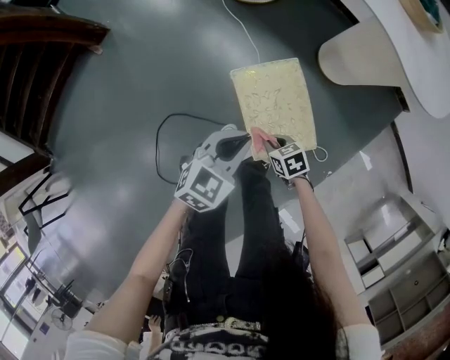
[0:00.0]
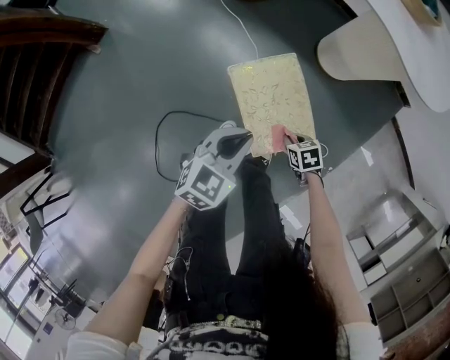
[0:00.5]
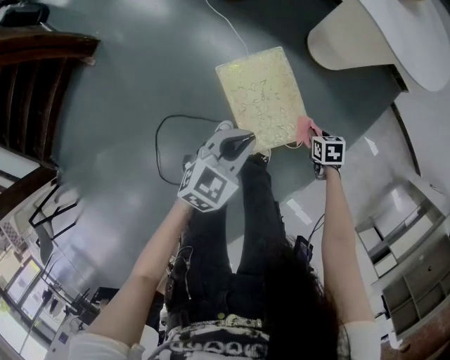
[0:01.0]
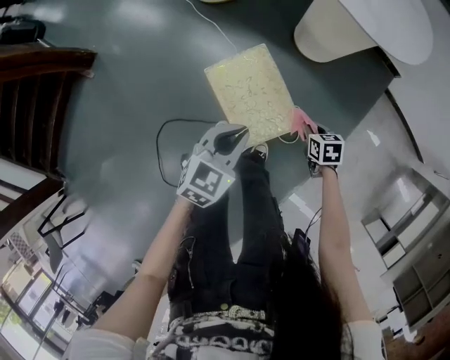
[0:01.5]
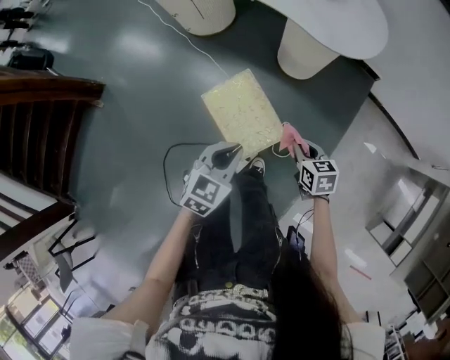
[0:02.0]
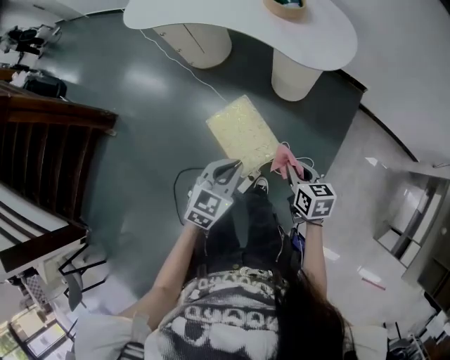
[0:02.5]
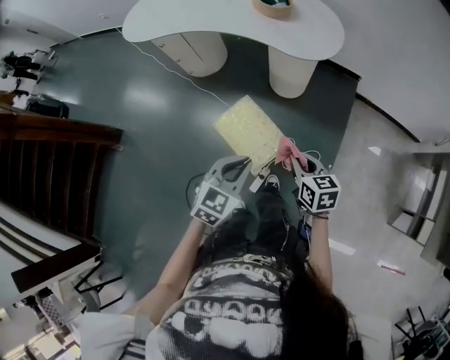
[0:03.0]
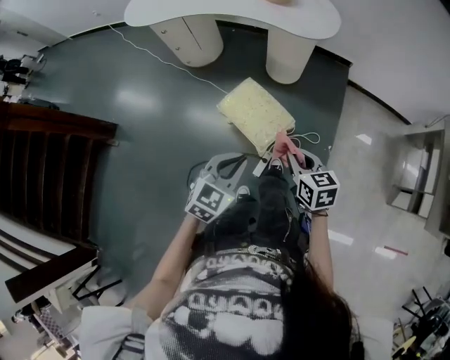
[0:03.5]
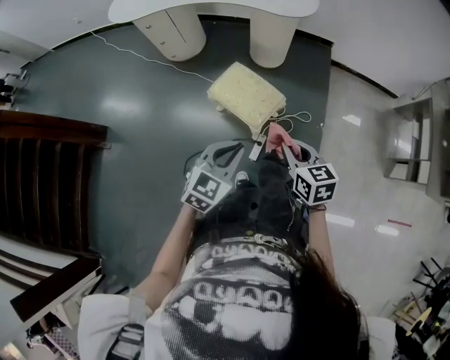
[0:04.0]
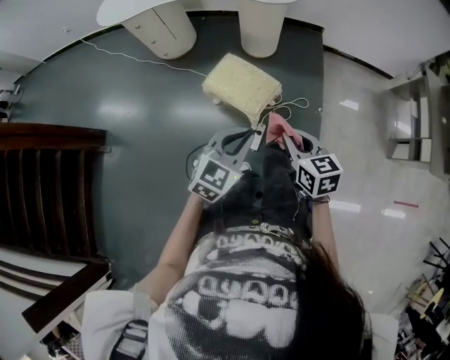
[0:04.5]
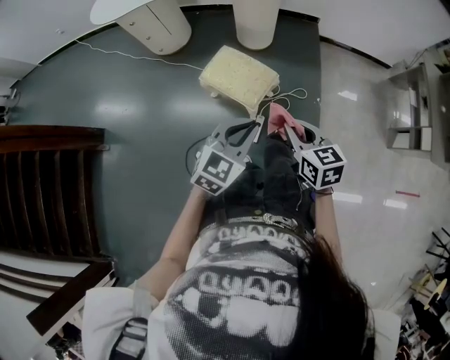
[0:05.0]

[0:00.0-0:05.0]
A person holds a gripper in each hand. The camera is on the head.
0:00.0 to 0:02.5: The right gripper goes some 35 cm upward, and rotates approximately 50 degrees. The left gripper heads upward, covering some 20 cm.
0:02.5 to 0:05.0: The grippers both shift backward by some 30 cm. The left gripper turns by about 30 degrees.

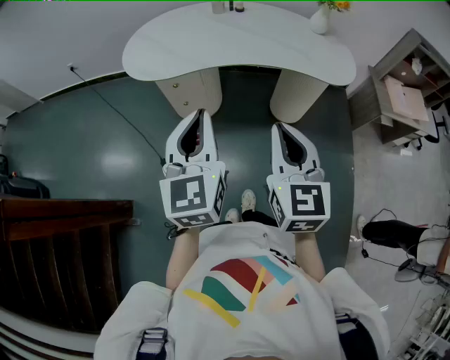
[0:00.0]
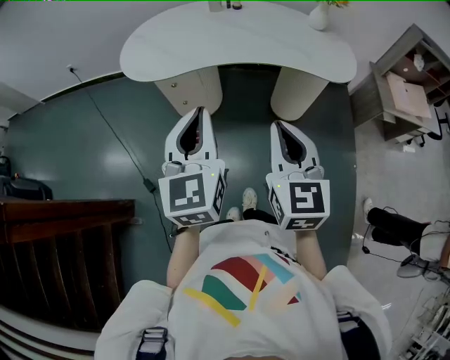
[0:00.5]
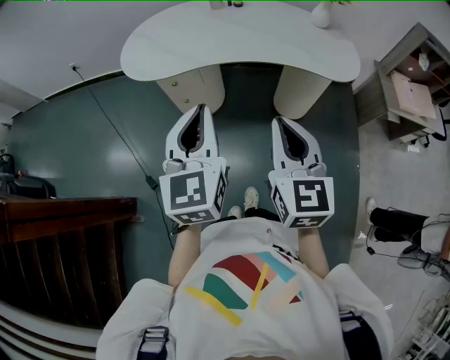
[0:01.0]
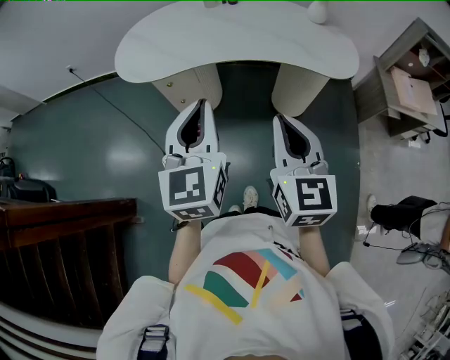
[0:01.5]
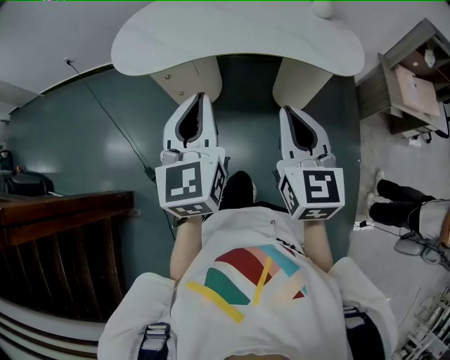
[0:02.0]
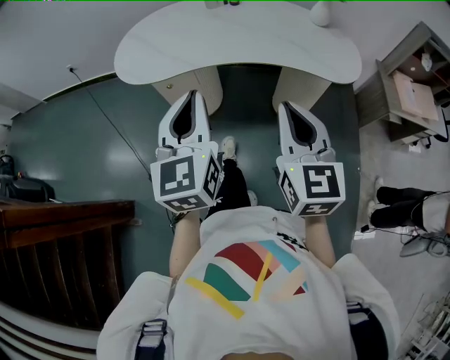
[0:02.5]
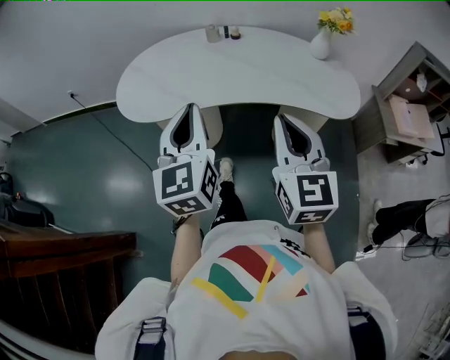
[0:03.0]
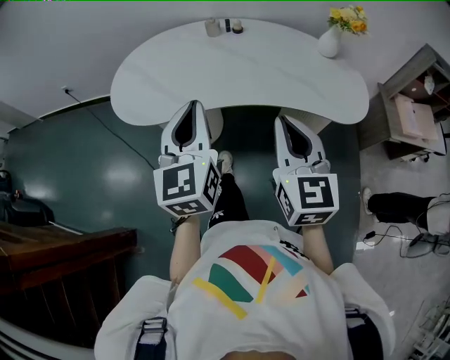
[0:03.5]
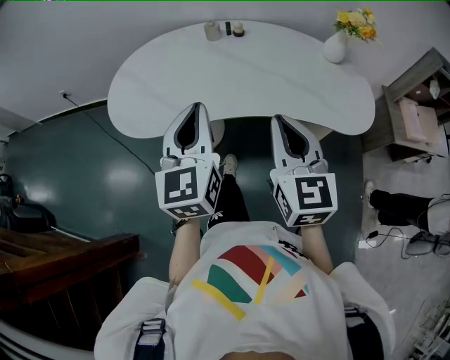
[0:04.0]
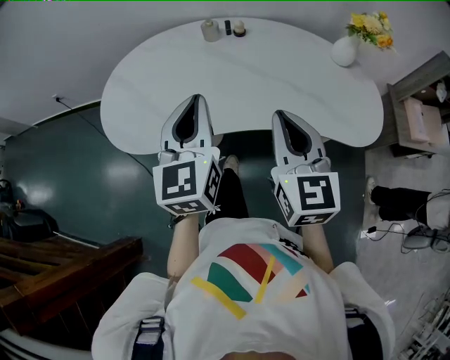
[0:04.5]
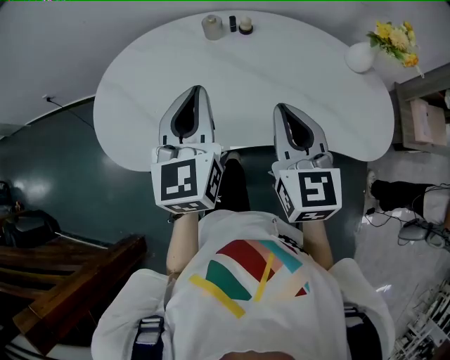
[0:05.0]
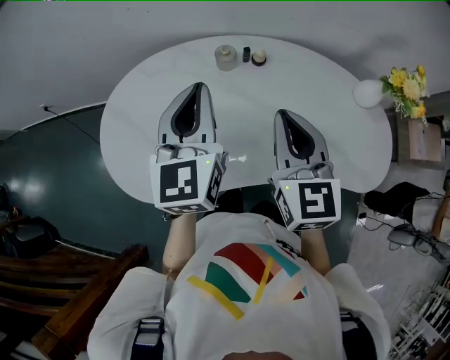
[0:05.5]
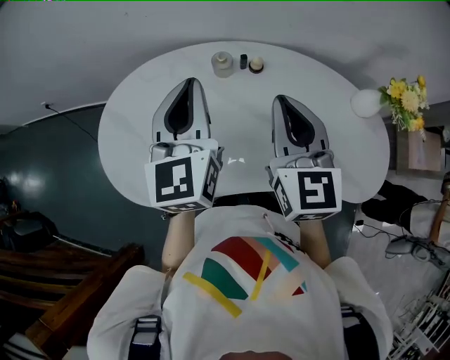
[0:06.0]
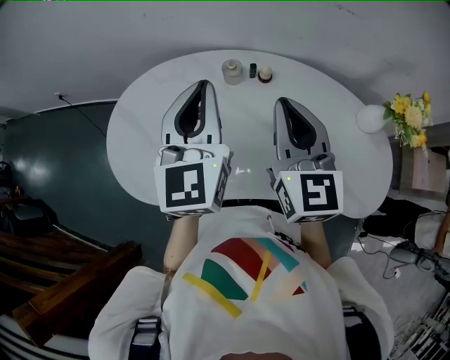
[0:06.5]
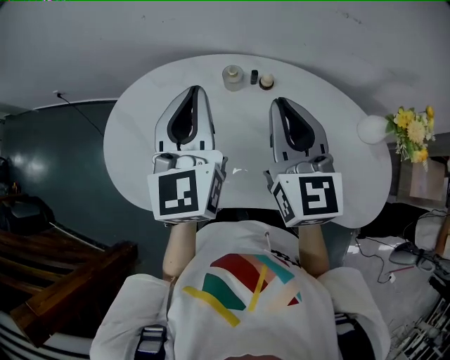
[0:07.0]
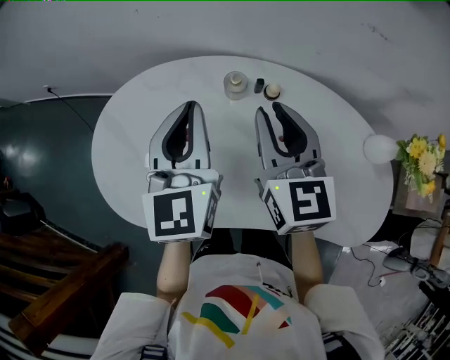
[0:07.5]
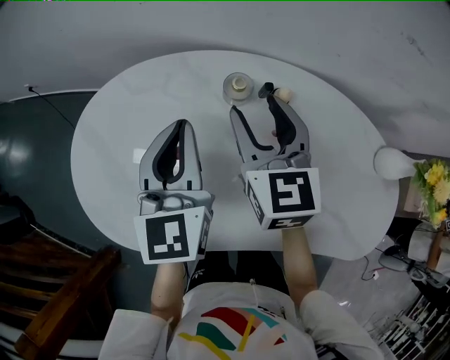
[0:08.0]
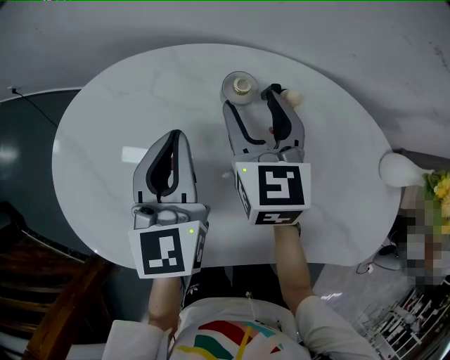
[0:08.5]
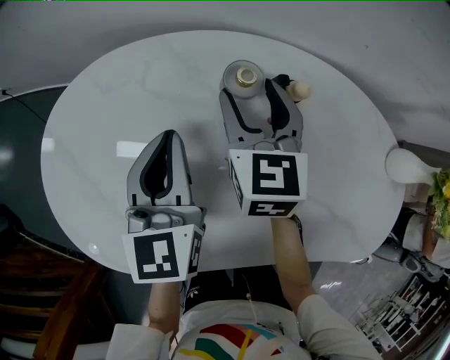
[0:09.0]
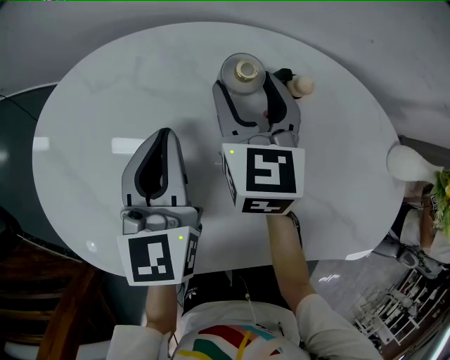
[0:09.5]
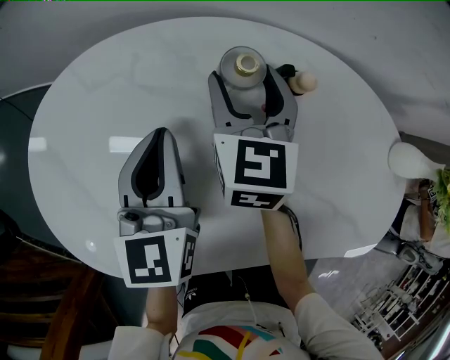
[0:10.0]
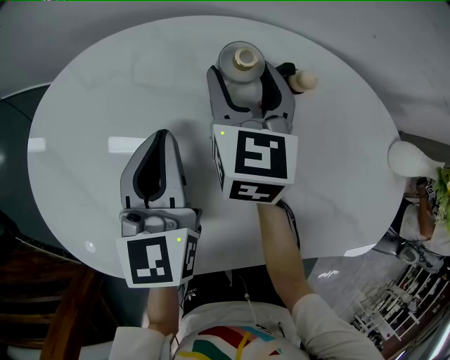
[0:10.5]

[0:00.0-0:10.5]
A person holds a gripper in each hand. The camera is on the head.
0:00.0 to 0:02.0: The right gripper travels to the right and forward by about 10 cm, while the left gripper heads forward and to the right, covering about 10 cm.
0:02.0 to 0:04.0: The two grippers go approximately 20 cm forward.
0:04.0 to 0:06.5: The two grippers go about 30 cm forward.
0:06.5 to 0:08.5: Both grippers move downward and forward, some 25 cm. The right gripper opens.
0:08.5 to 0:10.5: Both grippers travel together downward, approximately 5 cm.

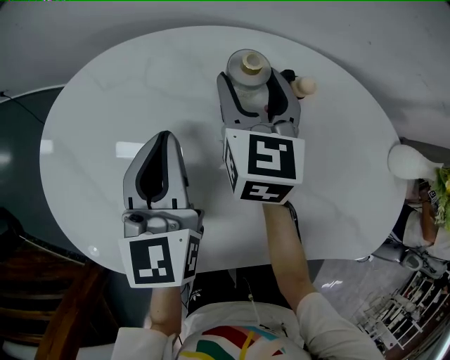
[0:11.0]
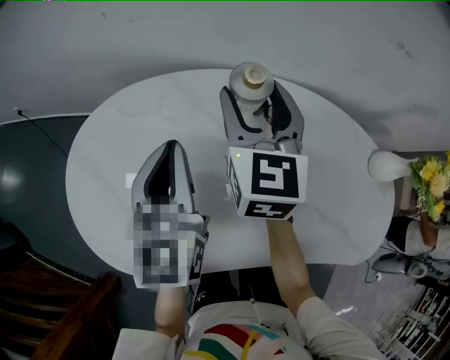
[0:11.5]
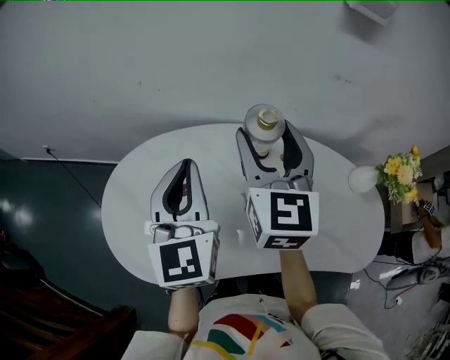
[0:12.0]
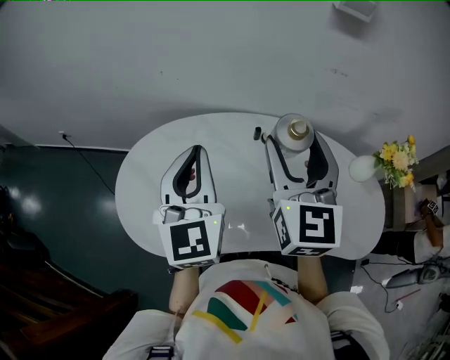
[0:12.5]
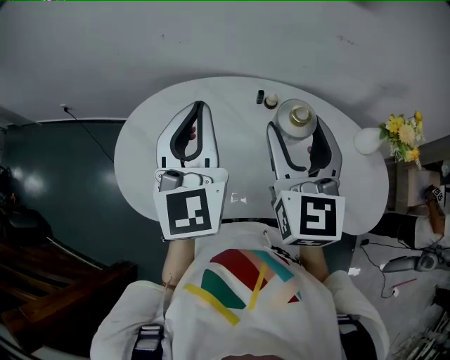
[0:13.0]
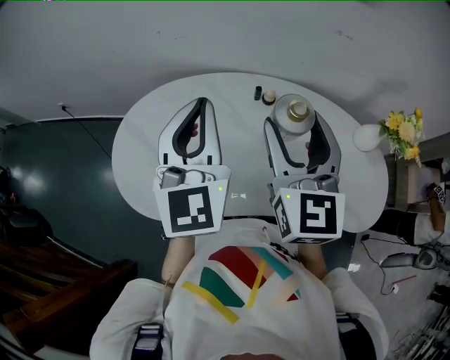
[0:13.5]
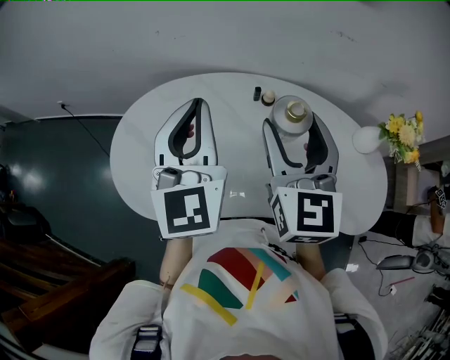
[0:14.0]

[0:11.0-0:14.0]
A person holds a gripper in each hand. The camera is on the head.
0:11.0 to 0:12.5: The right gripper goes some 35 cm upward and backward, and changes its angle by some 20 degrees. Meanwhile the left gripper moves upward, some 25 cm, and rotates about 20 degrees.
0:12.5 to 0:14.0: The right gripper changes place by roughly 5 cm.

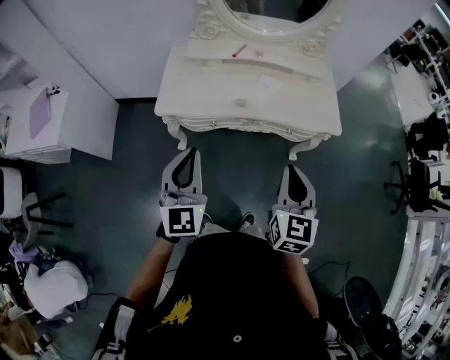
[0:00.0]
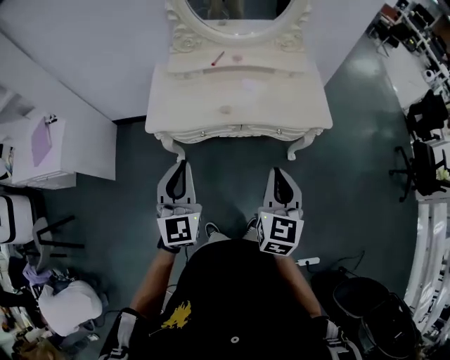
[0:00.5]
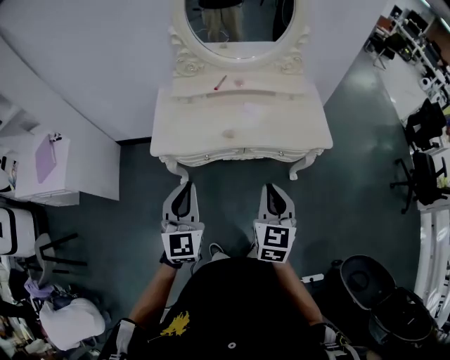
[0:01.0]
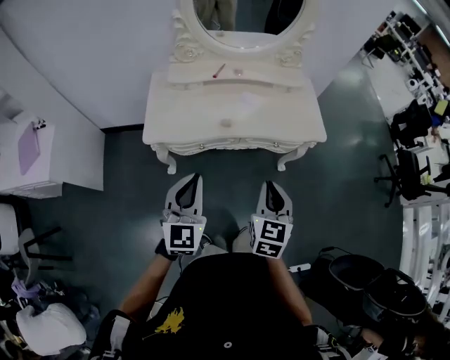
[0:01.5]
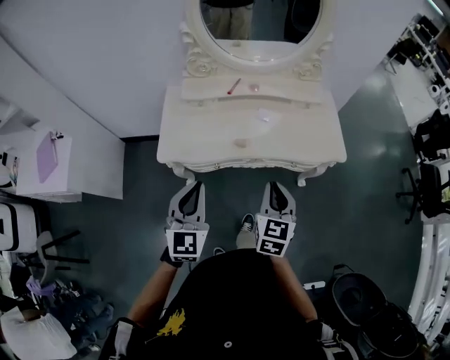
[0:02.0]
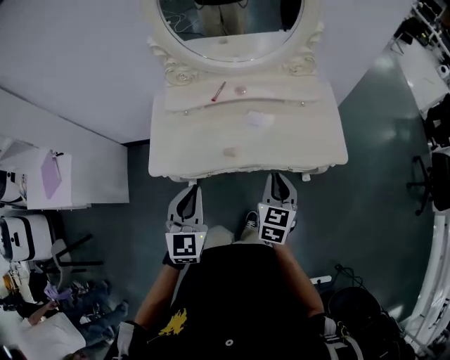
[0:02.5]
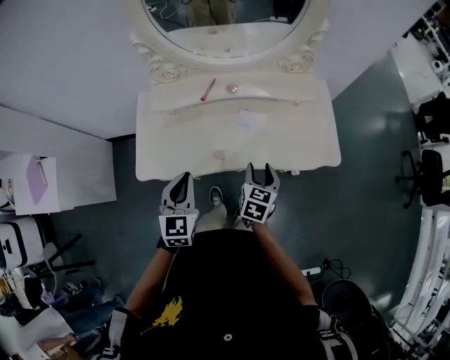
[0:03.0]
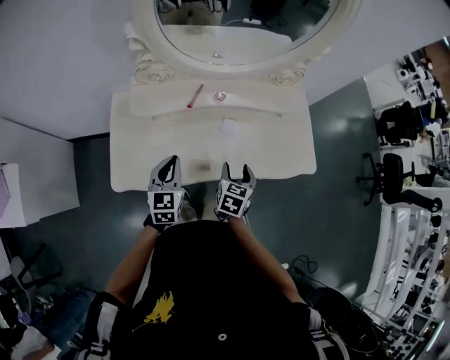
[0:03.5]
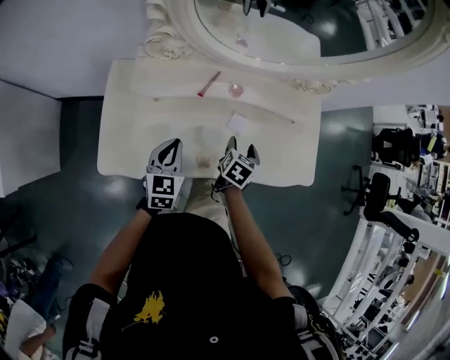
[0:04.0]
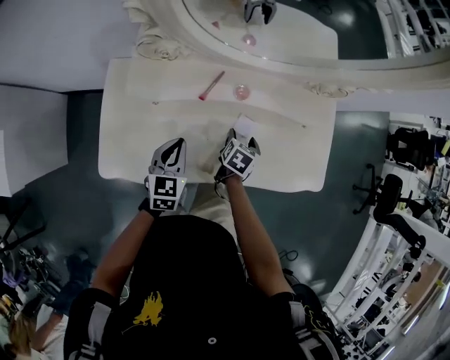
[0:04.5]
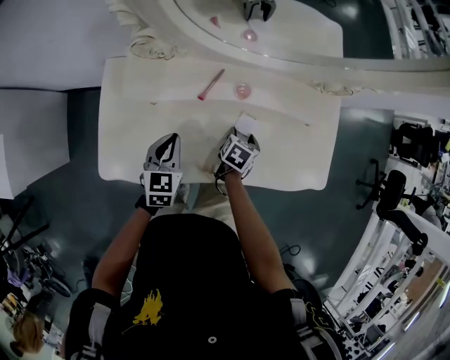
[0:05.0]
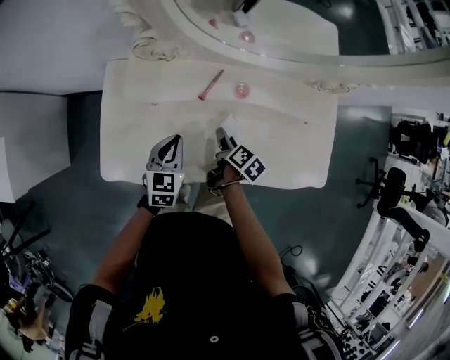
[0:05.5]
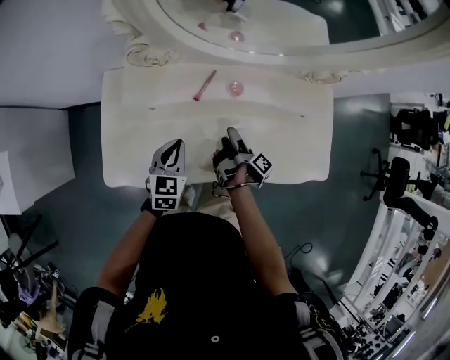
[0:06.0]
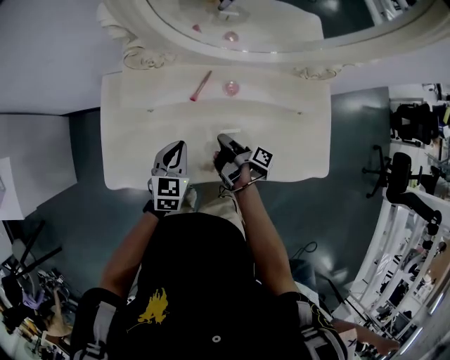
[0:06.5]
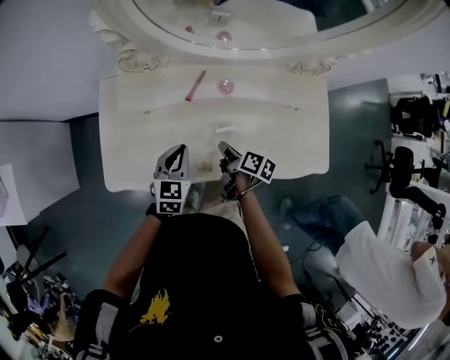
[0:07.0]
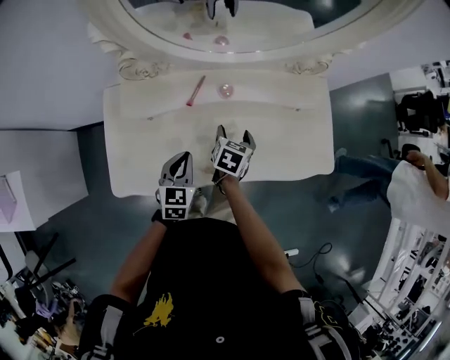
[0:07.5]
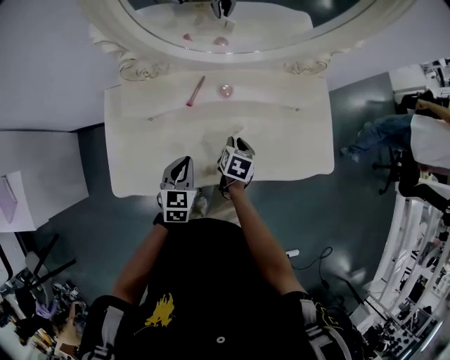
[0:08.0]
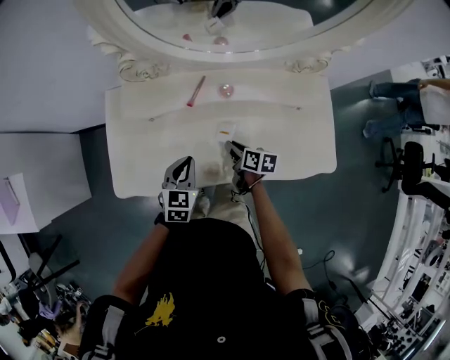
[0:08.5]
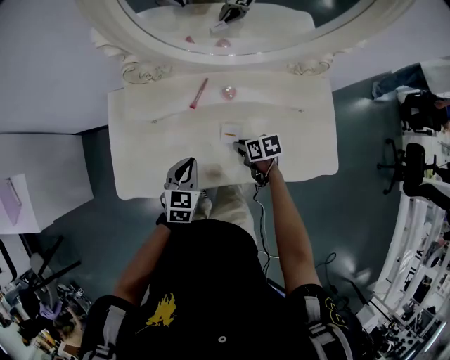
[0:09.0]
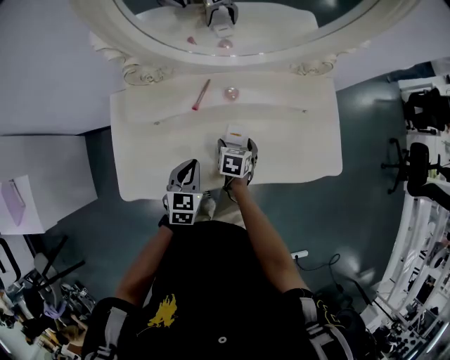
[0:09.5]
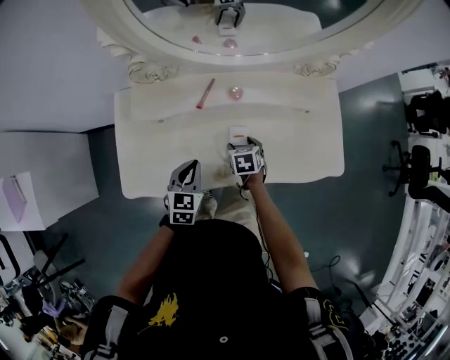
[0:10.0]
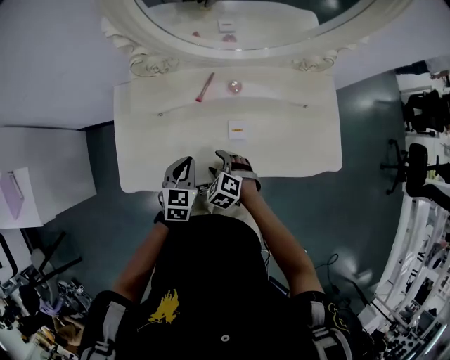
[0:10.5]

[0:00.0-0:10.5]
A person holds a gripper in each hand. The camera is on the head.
0:00.0 to 0:02.0: The right gripper shifts about 15 cm forward and downward. The left gripper travels forward by about 10 cm.
0:02.0 to 0:04.0: Both grippers travel together forward and downward, about 40 cm. The right gripper changes its angle by about 30 degrees, and opens up; the left gripper rotates some 20 degrees.
0:04.0 to 0:06.5: The right gripper goes about 5 cm to the left, changes its angle by roughly 90 degrees, and closes up.
0:06.5 to 0:08.5: The right gripper rotates around the line of its fingers by some 50 degrees, counterclockwise from behind, and opens, then closes again.
0:08.5 to 0:10.5: The right gripper changes place by about 15 cm, rotates around the line of its fingers by approximately 80 degrees, counterclockwise from behind, and opens its fingers.
